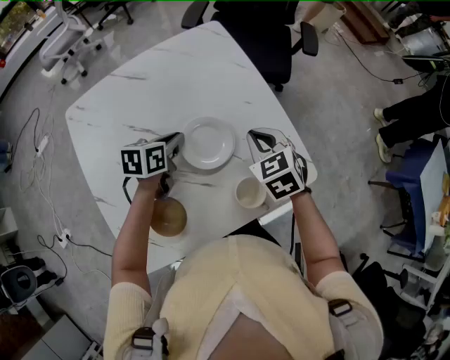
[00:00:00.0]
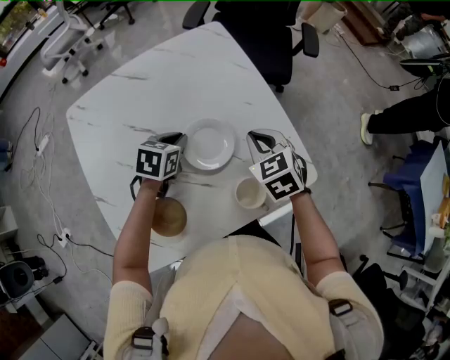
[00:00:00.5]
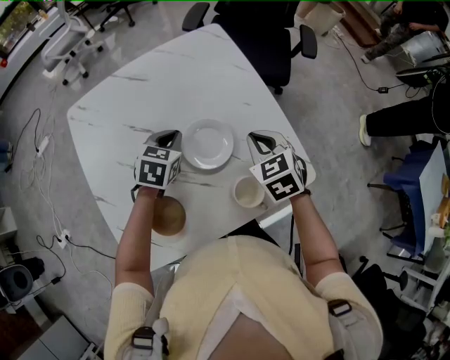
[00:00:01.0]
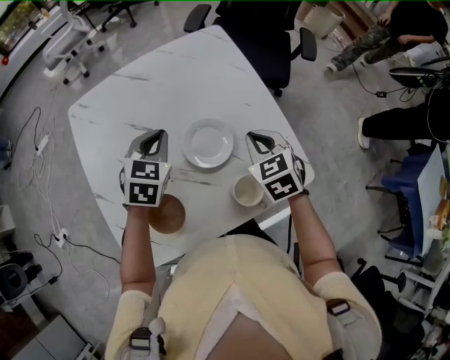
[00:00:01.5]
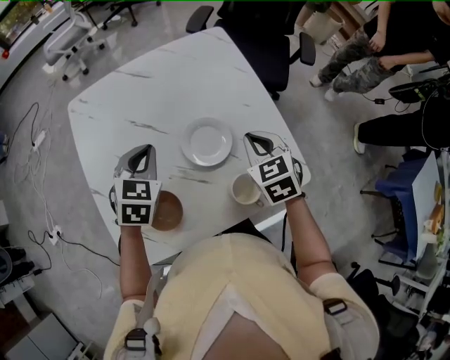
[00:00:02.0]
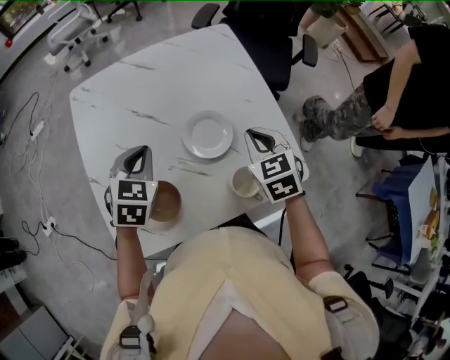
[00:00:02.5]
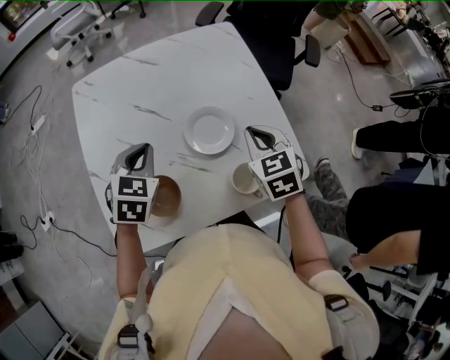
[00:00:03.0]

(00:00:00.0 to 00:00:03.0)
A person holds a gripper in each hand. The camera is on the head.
00:00:00.0 - 00:00:01.5: The left gripper travels upward by approximately 10 cm, and turns by roughly 40 degrees.
00:00:01.5 - 00:00:03.0: The left gripper travels backward and to the left by some 10 cm.

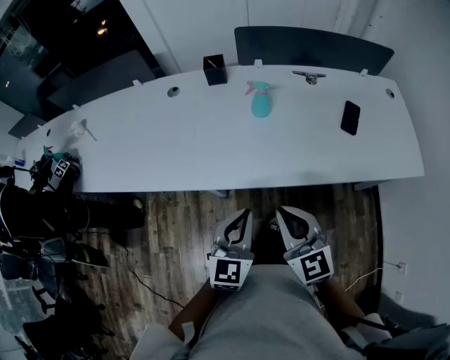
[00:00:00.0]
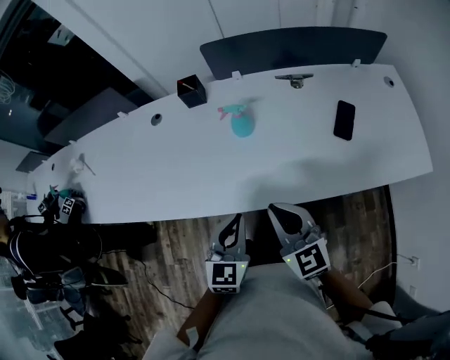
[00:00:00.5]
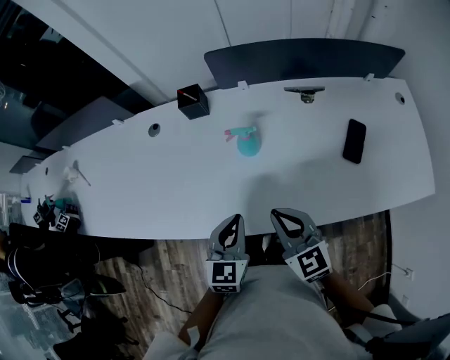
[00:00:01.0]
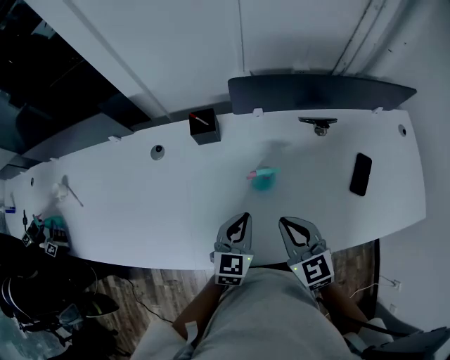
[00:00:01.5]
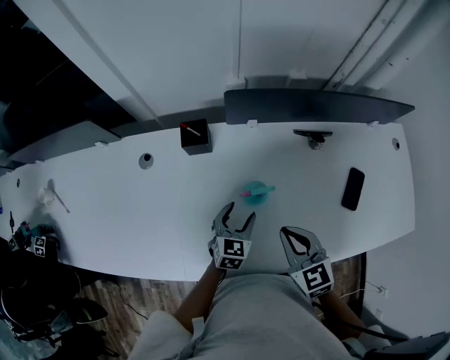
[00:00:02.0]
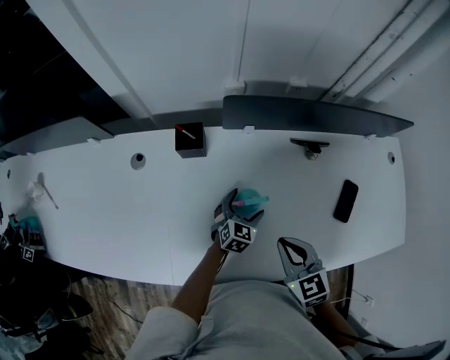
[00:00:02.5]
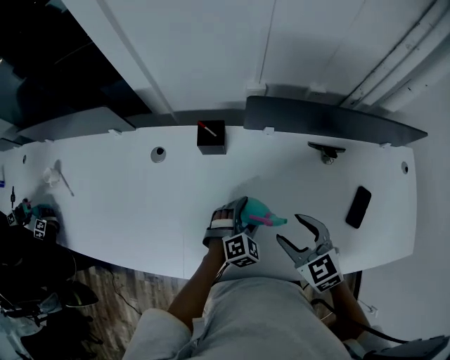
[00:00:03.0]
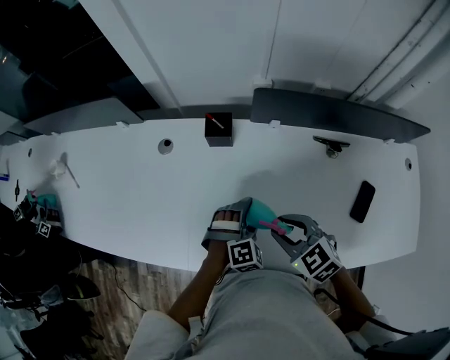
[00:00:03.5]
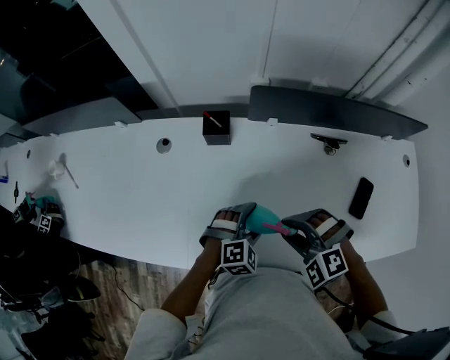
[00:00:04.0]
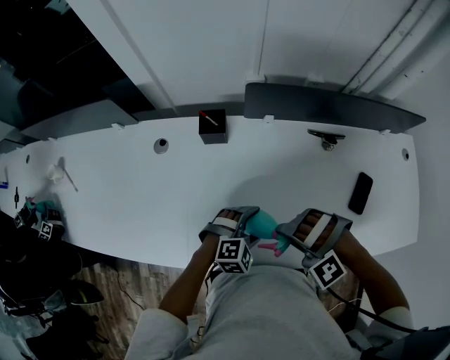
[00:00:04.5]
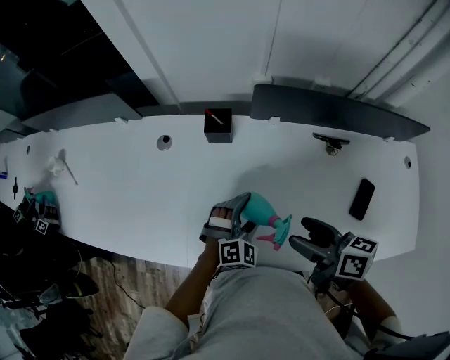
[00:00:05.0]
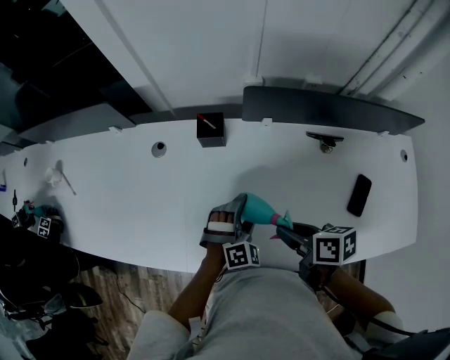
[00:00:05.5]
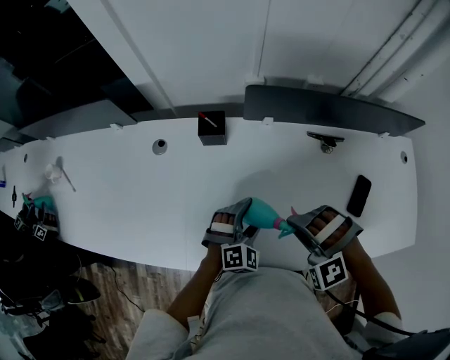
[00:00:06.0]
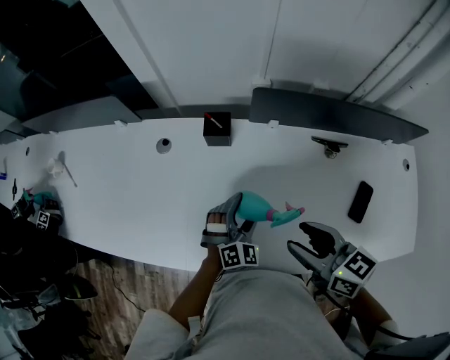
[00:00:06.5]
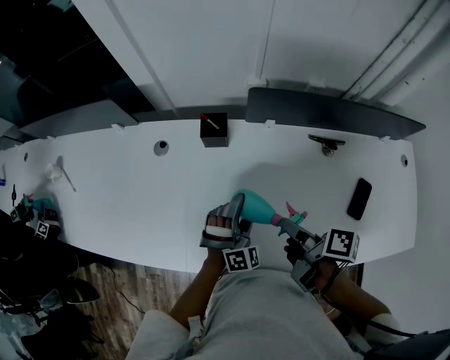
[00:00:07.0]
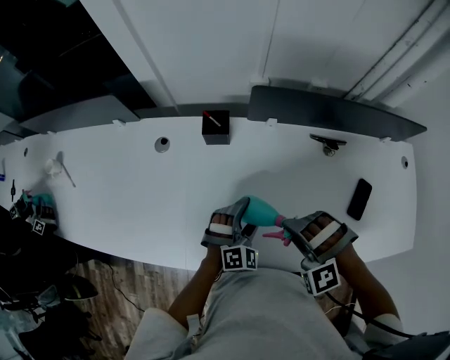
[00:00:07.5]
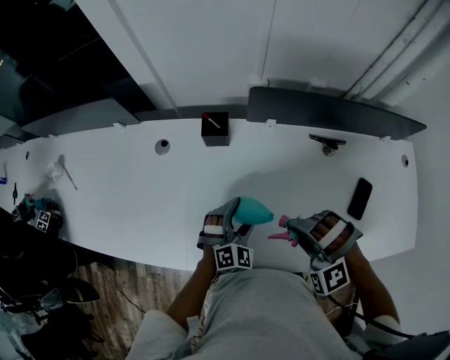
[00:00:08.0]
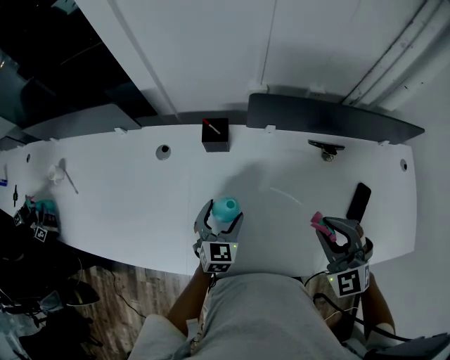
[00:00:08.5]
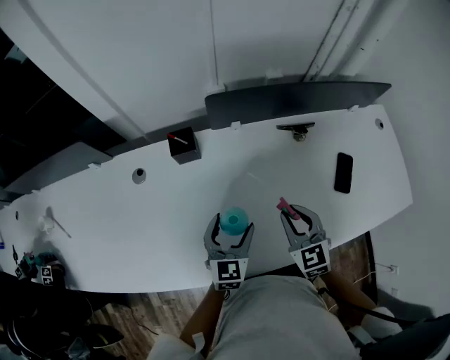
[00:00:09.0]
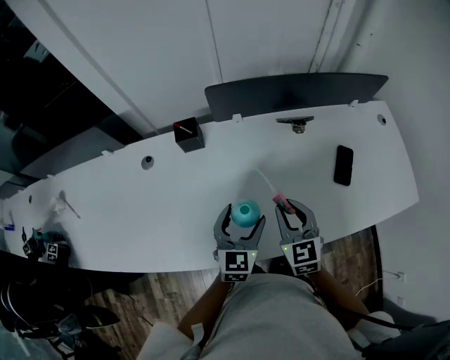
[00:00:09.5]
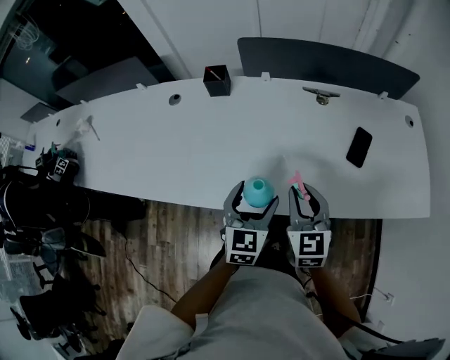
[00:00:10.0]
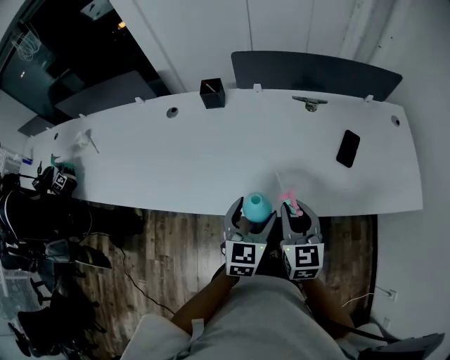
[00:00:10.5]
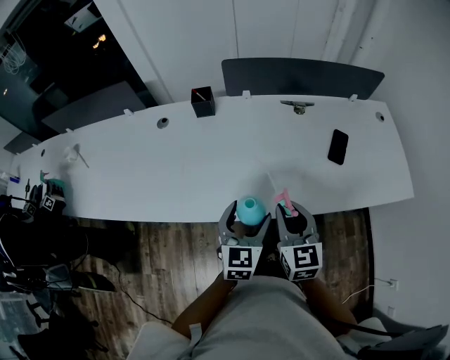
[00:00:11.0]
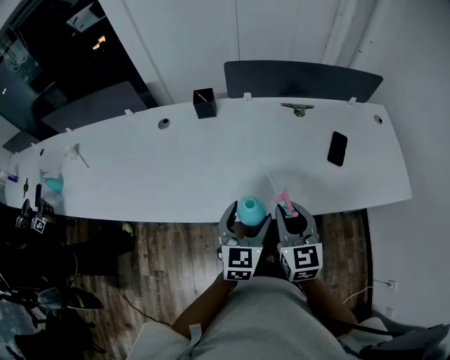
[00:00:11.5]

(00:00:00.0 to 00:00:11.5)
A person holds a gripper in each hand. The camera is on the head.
00:00:00.0 - 00:00:02.0: The left gripper travels forward and downward by some 40 cm, and opens up, while the right gripper heads forward, covering about 30 cm, and swivels some 20 degrees.
00:00:02.0 - 00:00:04.0: The right gripper twists approximately 60 degrees counterclockwise, seen from behind, and opens. Meanwhile the left gripper is displaced backward by approximately 5 cm, and twists about 50 degrees clockwise, seen from behind.
00:00:04.0 - 00:00:06.0: The right gripper rotates roughly 20 degrees, and opens, then closes again.
00:00:06.0 - 00:00:07.5: The right gripper moves roughly 5 cm upward and comes back, and opens and closes again.
00:00:07.5 - 00:00:09.5: The left gripper heads upward and backward, covering roughly 10 cm, reaches about 10 cm to the left, then returns, and rolls counterclockwise, seen from behind, by some 40 degrees. The right gripper is displaced to the right by about 5 cm, and rolls clockwise, seen from behind, by about 90 degrees.
00:00:09.5 - 00:00:11.5: The two grippers go about 15 cm backward.

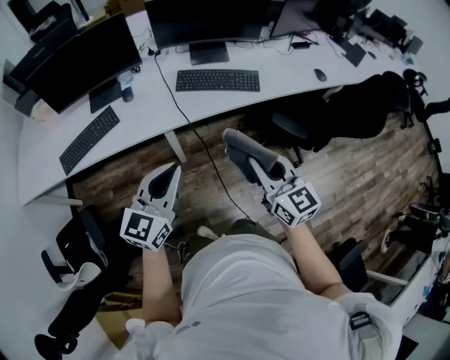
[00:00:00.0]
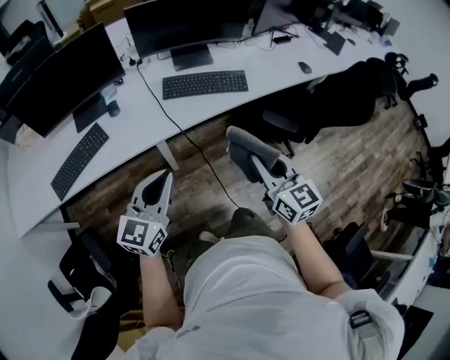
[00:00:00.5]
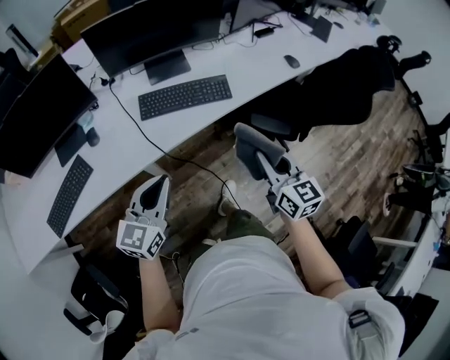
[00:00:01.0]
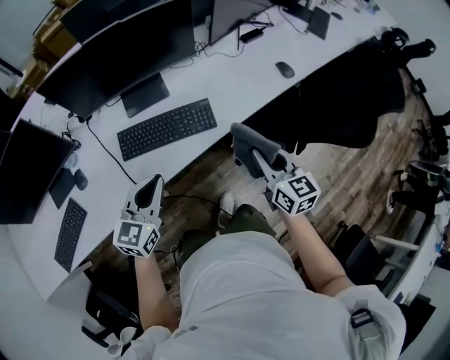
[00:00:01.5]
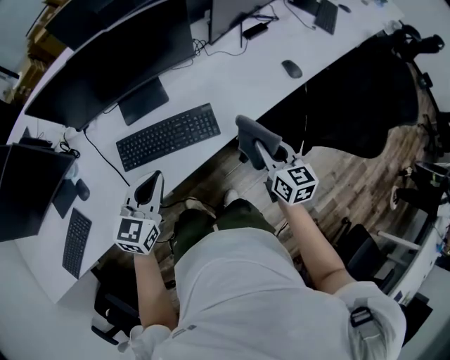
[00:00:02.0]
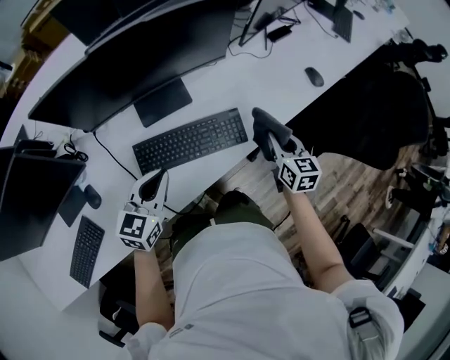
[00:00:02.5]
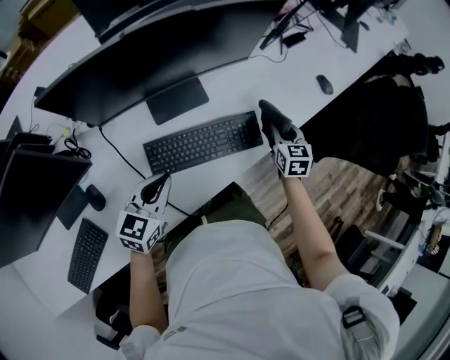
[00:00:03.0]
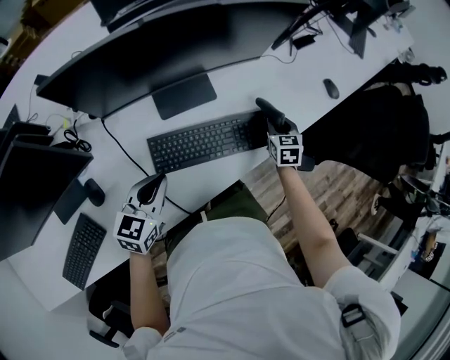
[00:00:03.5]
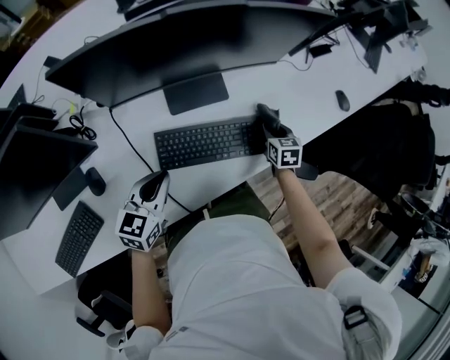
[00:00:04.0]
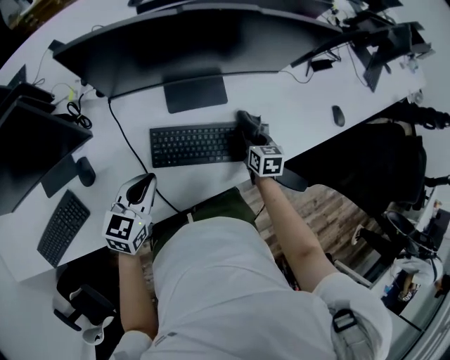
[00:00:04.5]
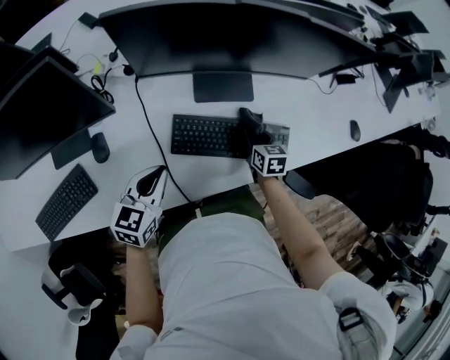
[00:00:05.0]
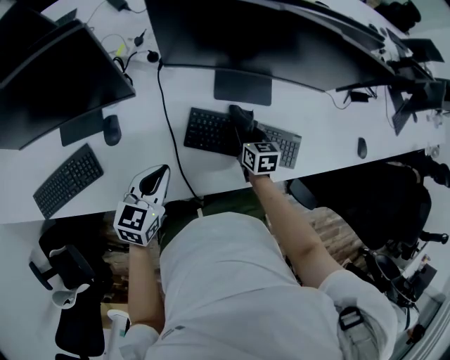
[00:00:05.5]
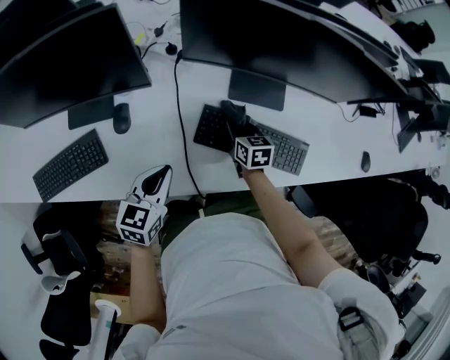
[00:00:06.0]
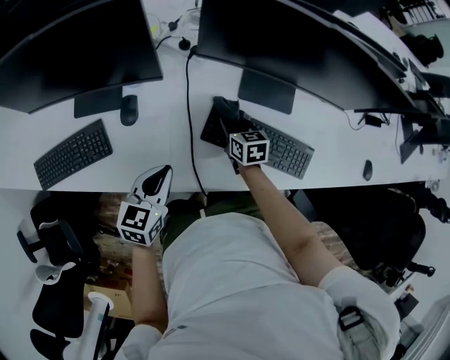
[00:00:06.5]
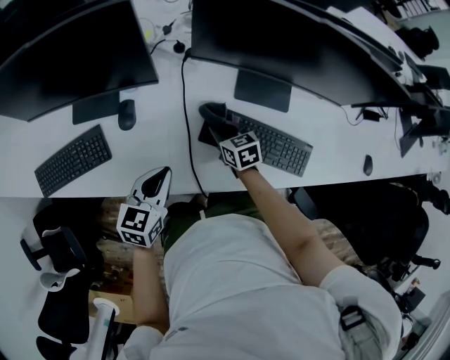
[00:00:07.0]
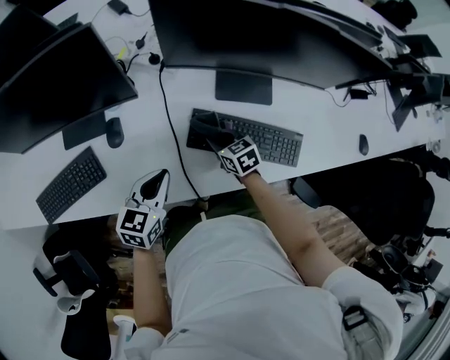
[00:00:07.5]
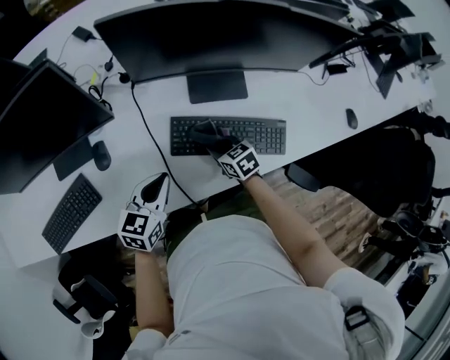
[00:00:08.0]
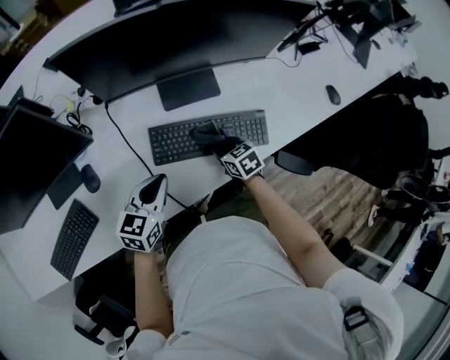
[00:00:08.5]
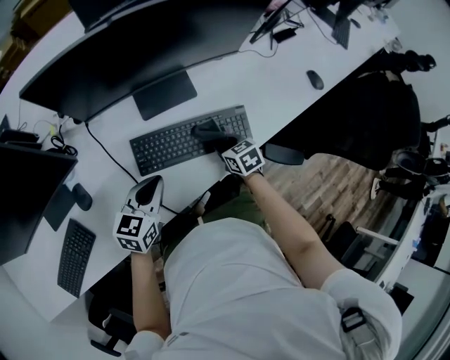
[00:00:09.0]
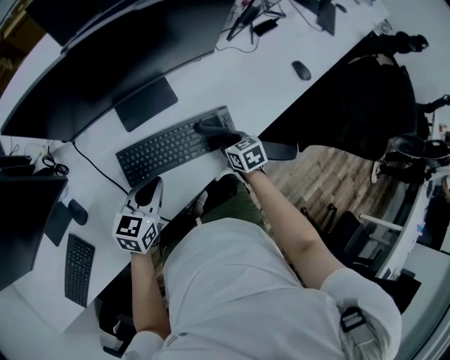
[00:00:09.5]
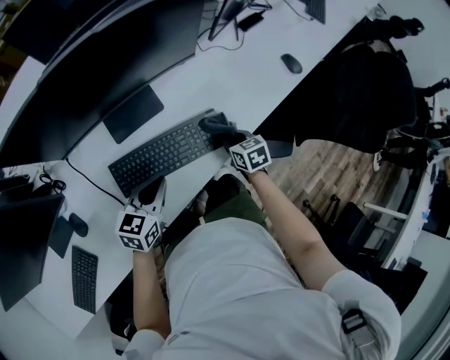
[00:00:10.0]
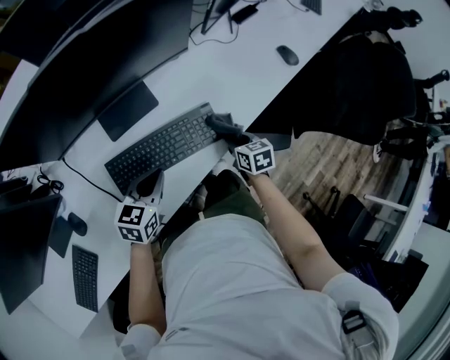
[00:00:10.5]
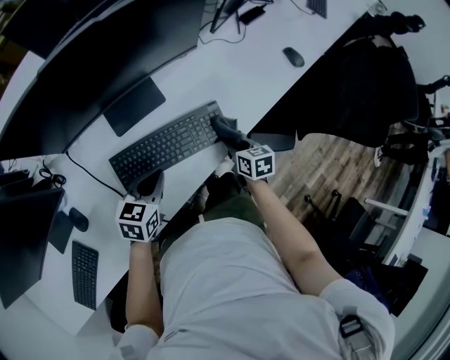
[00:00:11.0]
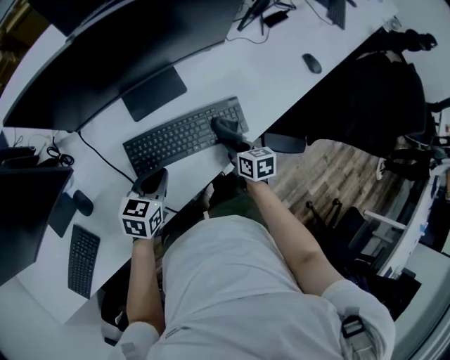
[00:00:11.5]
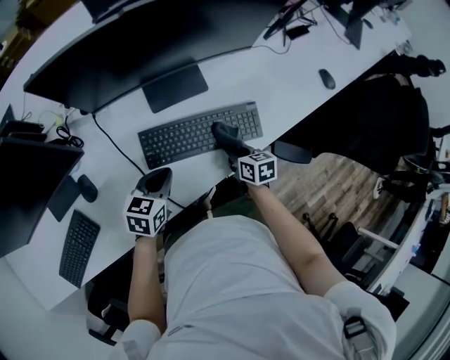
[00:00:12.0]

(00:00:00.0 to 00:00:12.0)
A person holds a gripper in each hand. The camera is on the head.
00:00:00.0 - 00:00:02.0: The right gripper travels forward and to the right by roughly 40 cm, and turns by approximately 30 degrees; the left gripper shifts roughly 40 cm forward, and swivels roughly 20 degrees.
00:00:02.0 - 00:00:04.0: The right gripper goes approximately 30 cm to the left, downward and forward, and swivels approximately 30 degrees; the left gripper goes some 25 cm to the left and downward.
00:00:04.0 - 00:00:06.0: The left gripper ends up approximately 10 cm from where it was, and changes its angle by about 20 degrees; the right gripper ends up approximately 30 cm from where it was, and changes its angle by some 30 degrees.
00:00:06.0 - 00:00:08.0: The left gripper changes place by about 5 cm; the right gripper travels backward by some 5 cm, and travels to the left and back again, some 10 cm each way.
00:00:08.0 - 00:00:10.0: The right gripper ends up about 30 cm from where it was, and changes its angle by some 40 degrees, while the left gripper moves some 20 cm, and rotates roughly 30 degrees.
00:00:10.0 - 00:00:12.0: The right gripper travels to the left and backward by roughly 15 cm; the left gripper is displaced to the left by roughly 10 cm.
